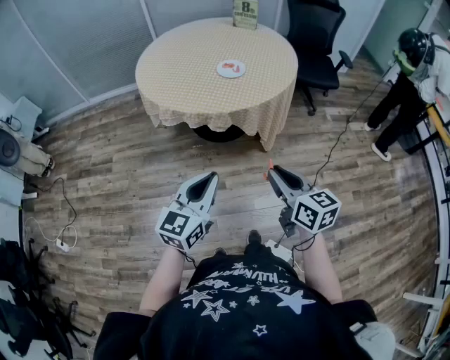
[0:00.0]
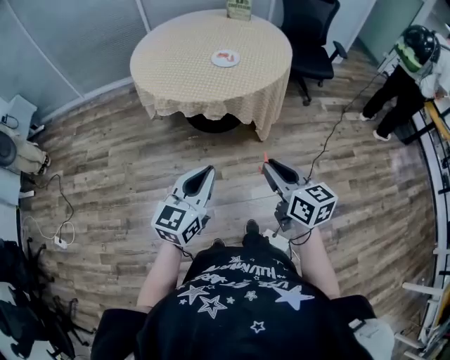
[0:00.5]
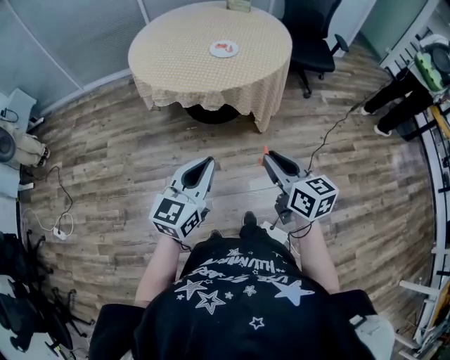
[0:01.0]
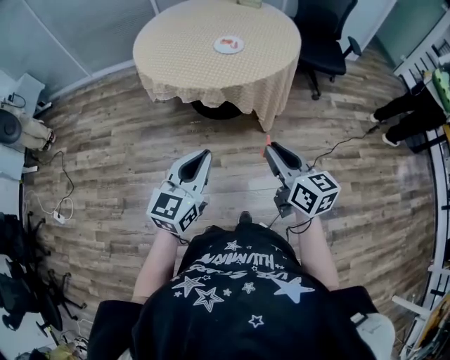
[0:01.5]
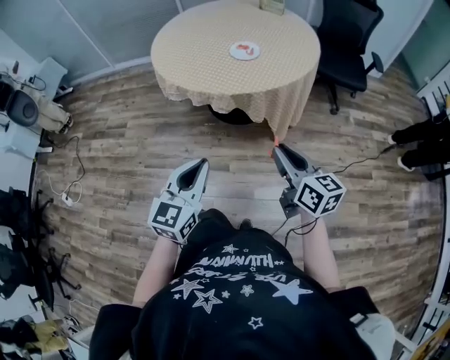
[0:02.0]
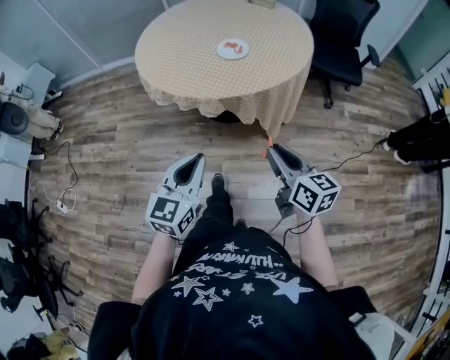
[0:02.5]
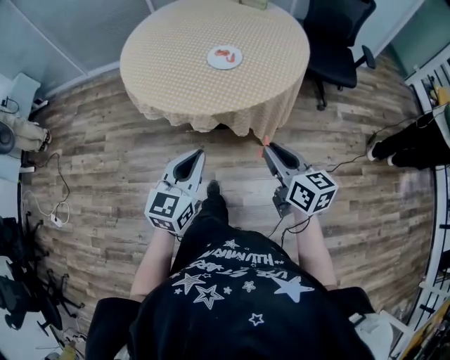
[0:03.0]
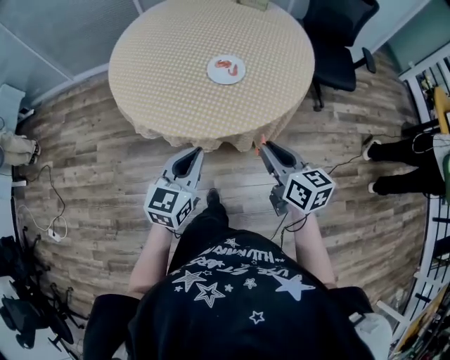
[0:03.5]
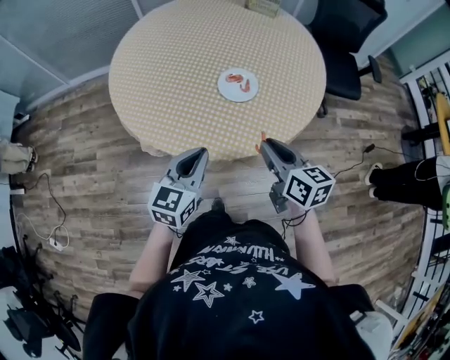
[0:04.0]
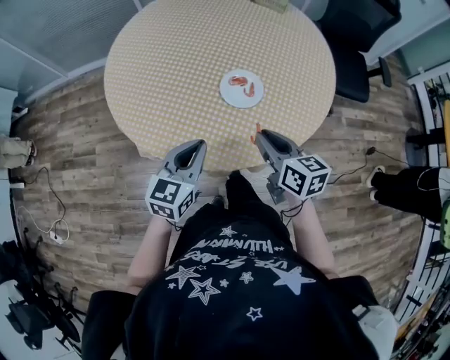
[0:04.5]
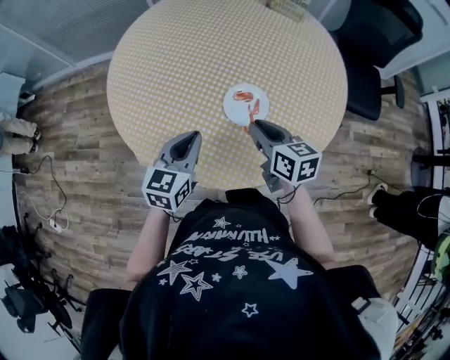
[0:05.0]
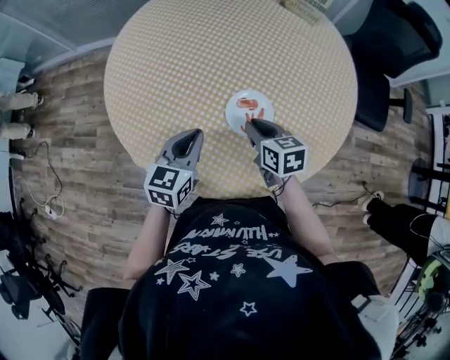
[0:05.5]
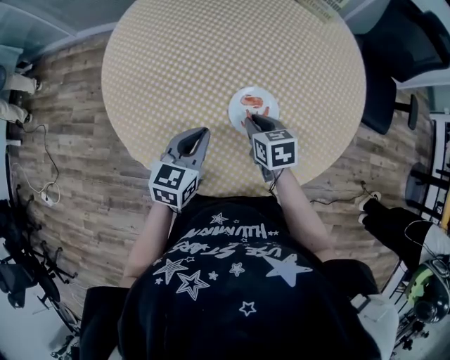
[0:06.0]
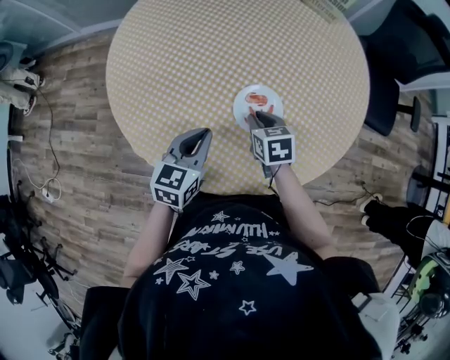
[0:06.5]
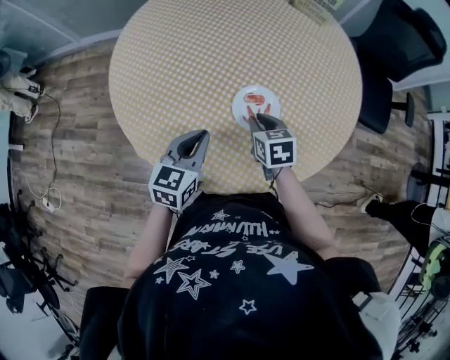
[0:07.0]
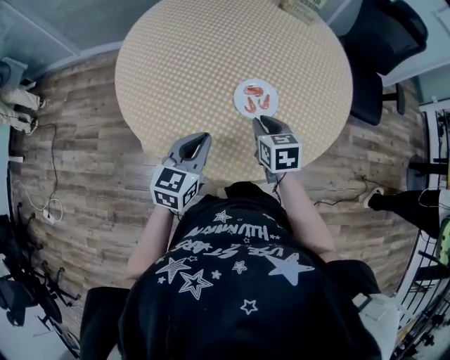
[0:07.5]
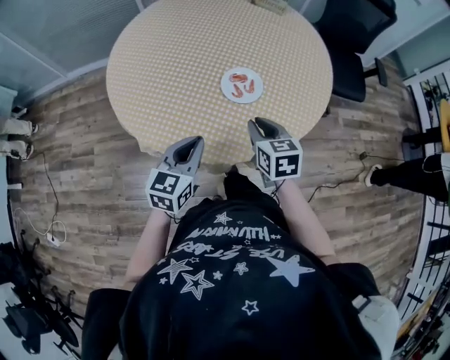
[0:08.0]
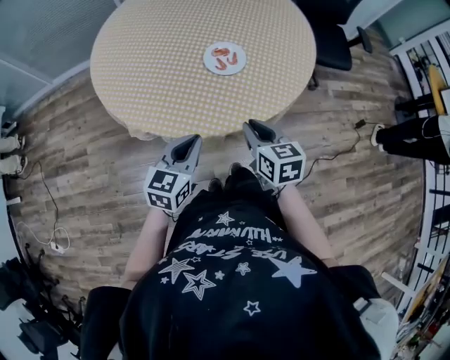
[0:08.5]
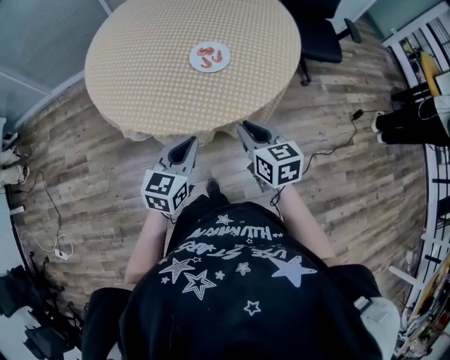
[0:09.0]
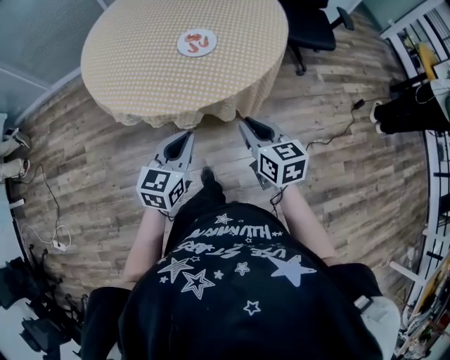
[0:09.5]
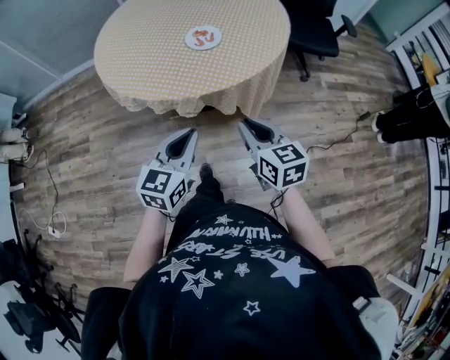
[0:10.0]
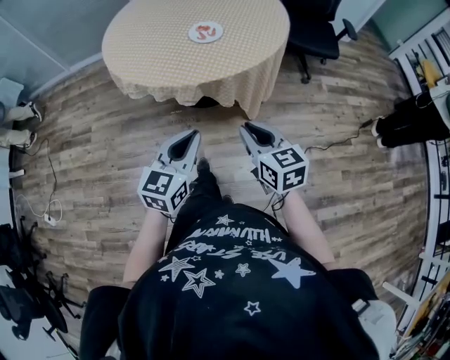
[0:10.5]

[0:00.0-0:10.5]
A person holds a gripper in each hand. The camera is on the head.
0:00.0 to 0:02.0: The right gripper travels to the right and forward by about 10 cm; the left gripper heads to the right, covering roughly 5 cm.
0:02.0 to 0:04.0: The two grippers go approximately 35 cm forward.
0:04.0 to 0:06.5: The left gripper shifts roughly 20 cm forward and downward. The right gripper moves forward and downward, approximately 30 cm, and changes its angle by some 30 degrees.
0:06.5 to 0:08.5: Both grippers move backward, roughly 25 cm. The right gripper changes its angle by some 20 degrees.
0:08.5 to 0:10.5: The two grippers go approximately 25 cm backward and to the right.

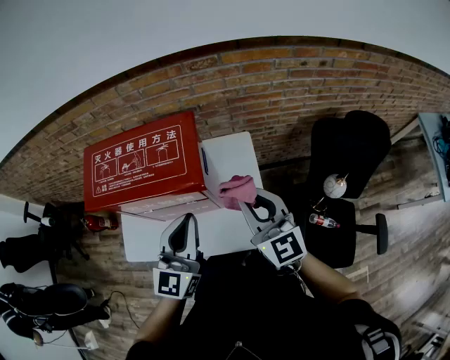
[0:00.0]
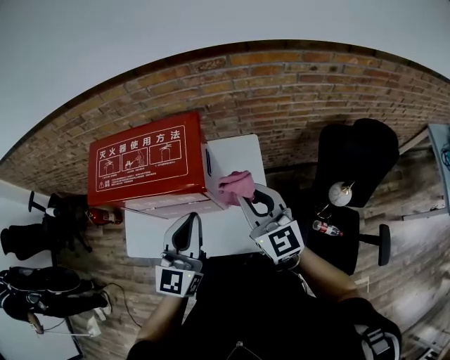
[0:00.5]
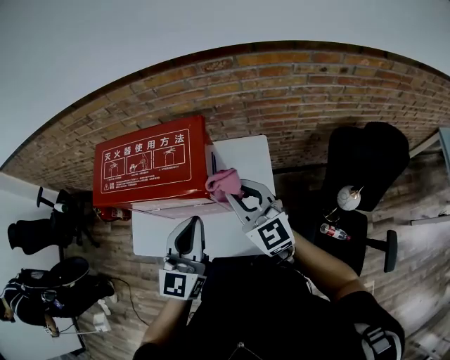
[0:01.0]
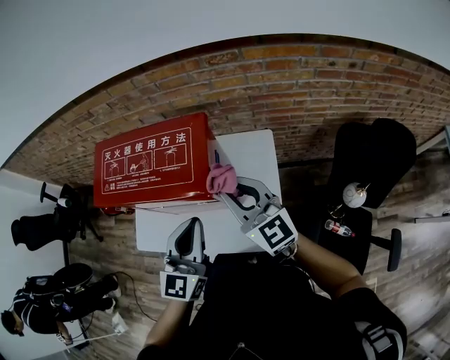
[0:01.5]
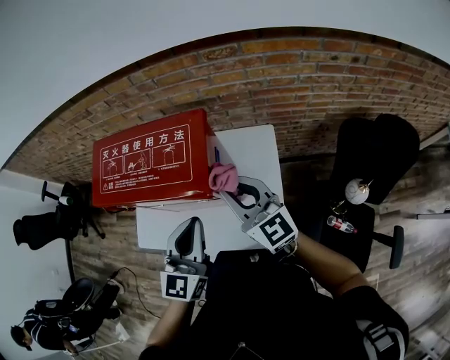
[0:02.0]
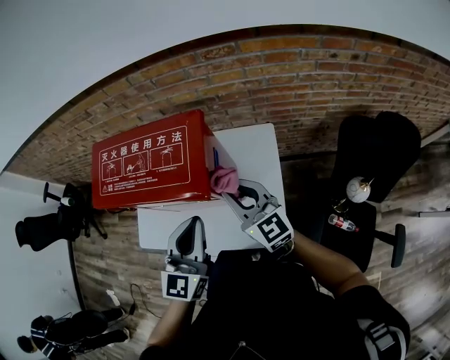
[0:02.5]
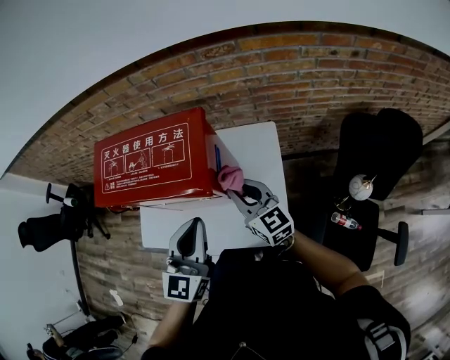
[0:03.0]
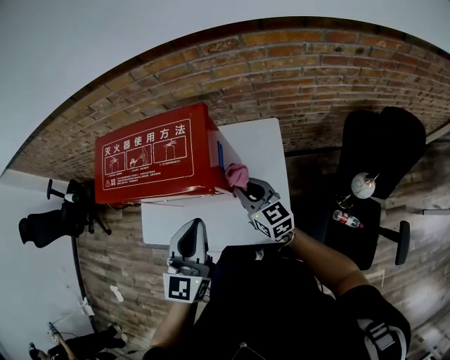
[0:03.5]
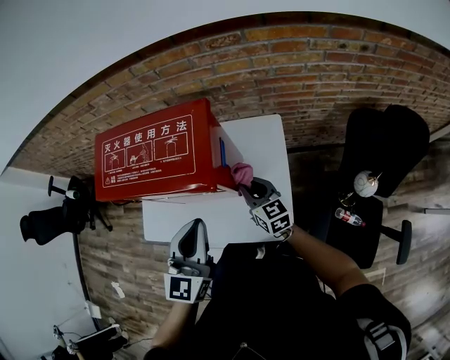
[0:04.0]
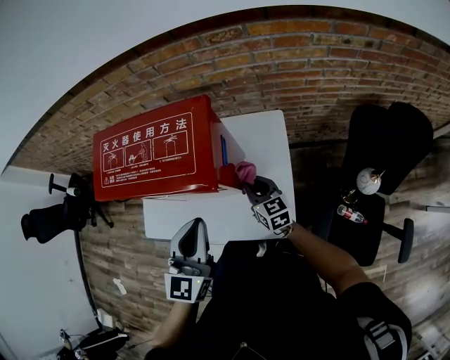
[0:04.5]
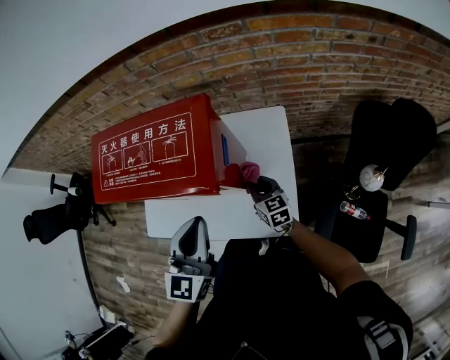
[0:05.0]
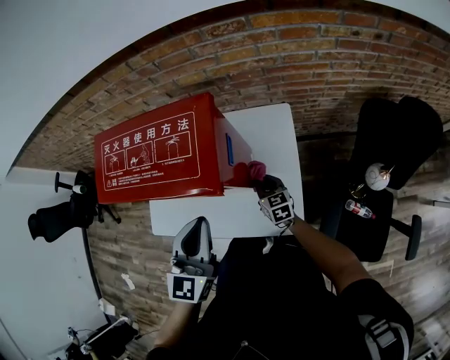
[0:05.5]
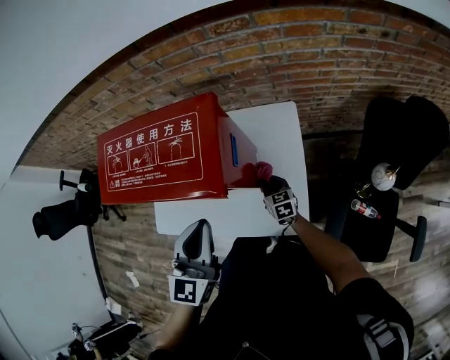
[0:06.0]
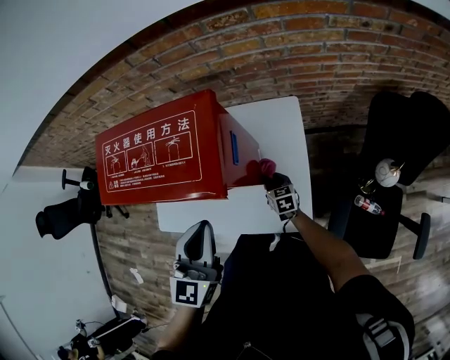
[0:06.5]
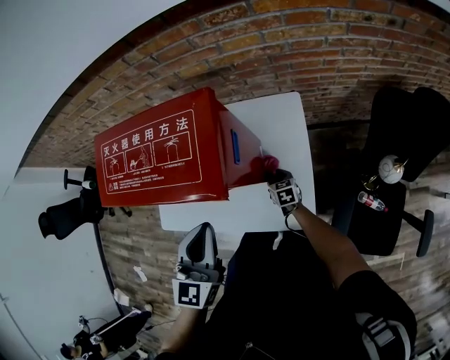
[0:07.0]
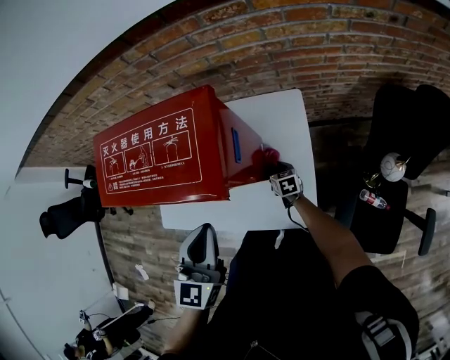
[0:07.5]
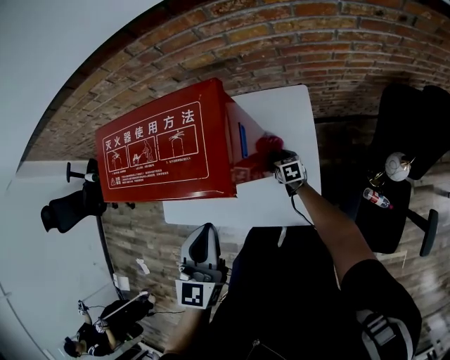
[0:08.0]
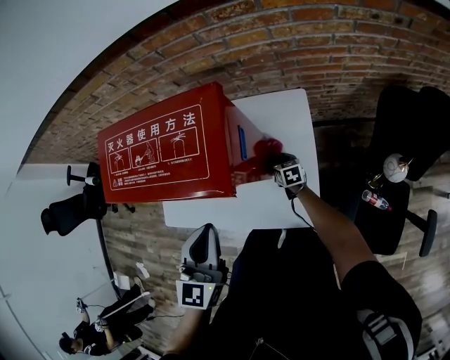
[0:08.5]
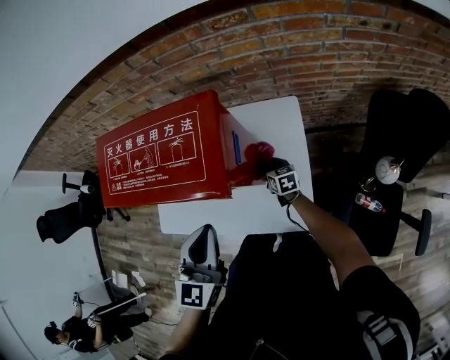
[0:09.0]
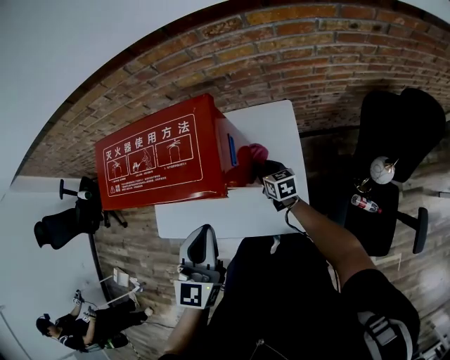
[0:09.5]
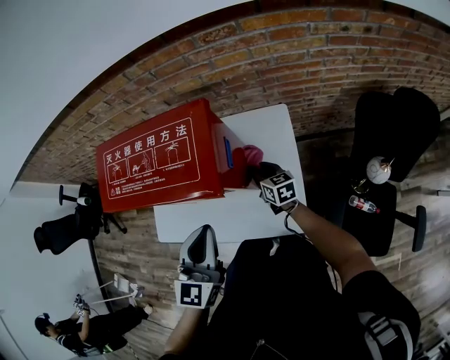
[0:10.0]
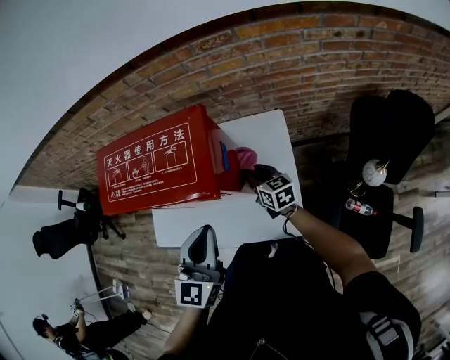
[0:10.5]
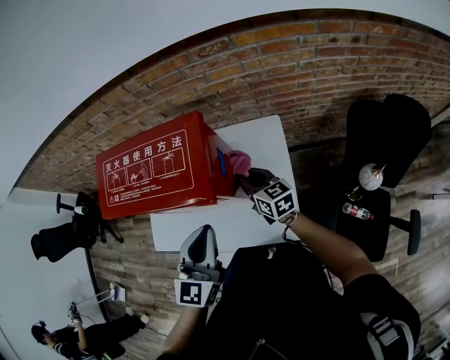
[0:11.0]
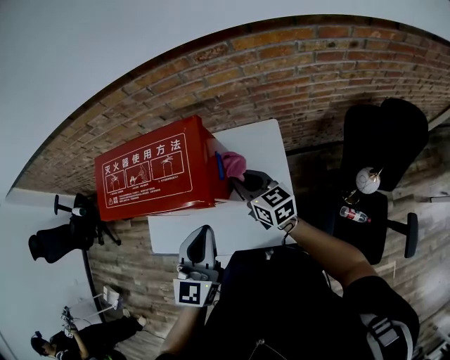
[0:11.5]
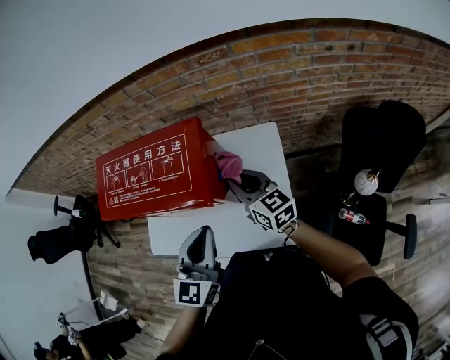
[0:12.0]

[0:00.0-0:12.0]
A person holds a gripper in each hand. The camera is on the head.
0:00.0 to 0:02.0: The right gripper is displaced forward and to the left by approximately 10 cm.
0:02.0 to 0:04.0: The right gripper is displaced downward by approximately 20 cm, and turns by some 20 degrees.
0:04.0 to 0:06.0: The right gripper moves downward, roughly 15 cm.
0:06.0 to 0:08.0: The right gripper moves downward and forward, some 10 cm.
0:08.0 to 0:10.0: The right gripper moves upward, about 15 cm.
0:10.0 to 0:12.0: The right gripper heads upward, covering roughly 20 cm, and swivels about 20 degrees.

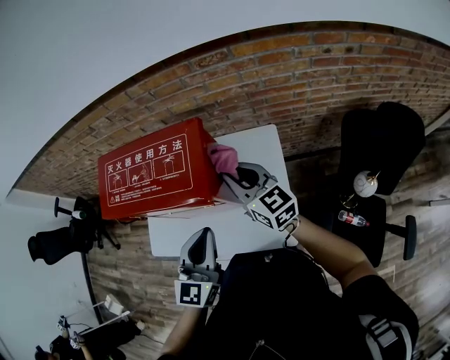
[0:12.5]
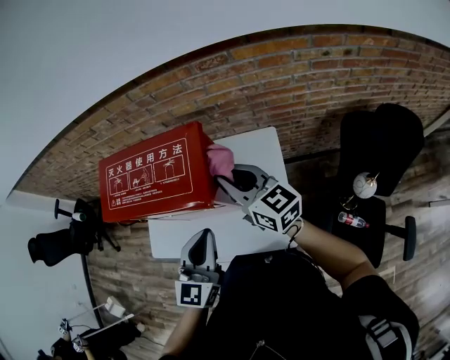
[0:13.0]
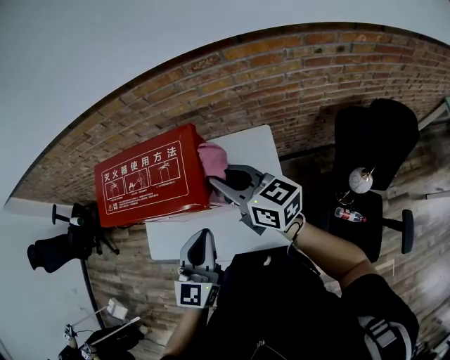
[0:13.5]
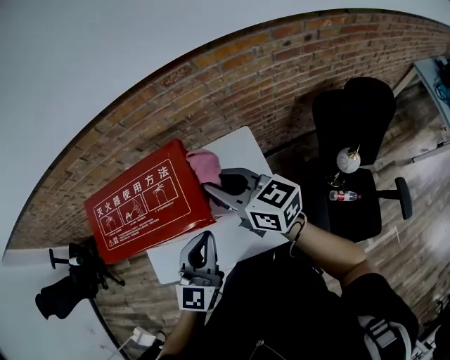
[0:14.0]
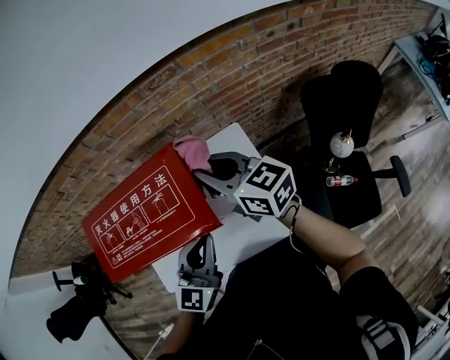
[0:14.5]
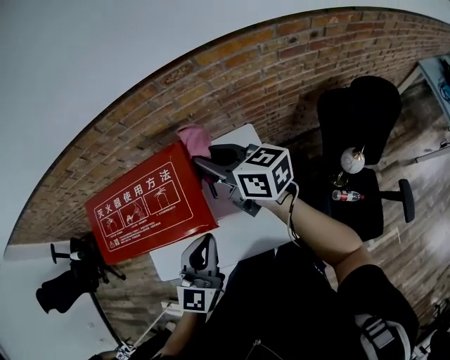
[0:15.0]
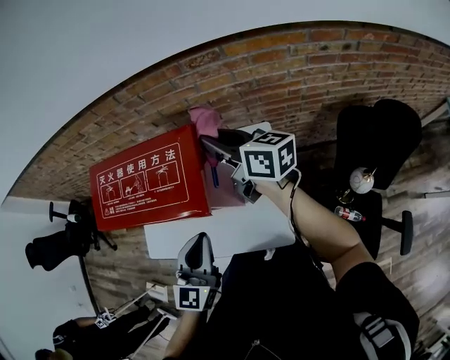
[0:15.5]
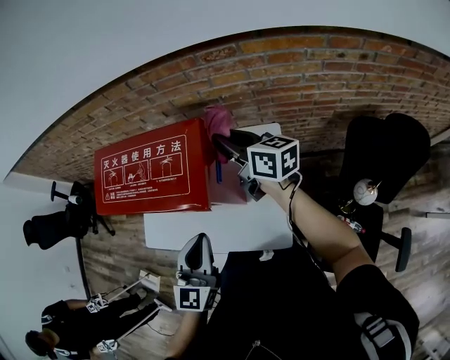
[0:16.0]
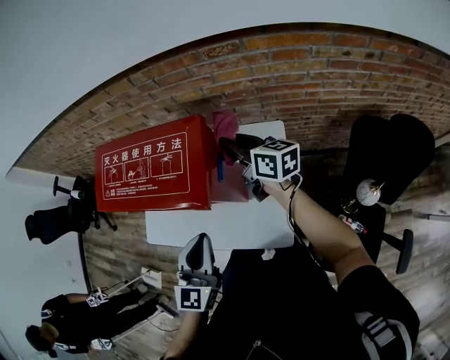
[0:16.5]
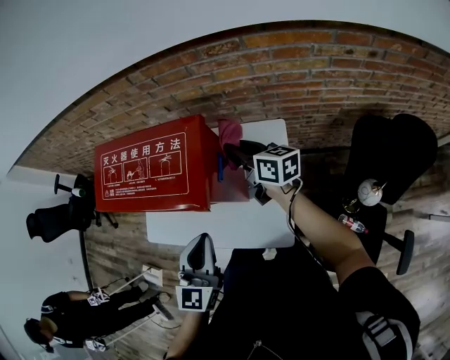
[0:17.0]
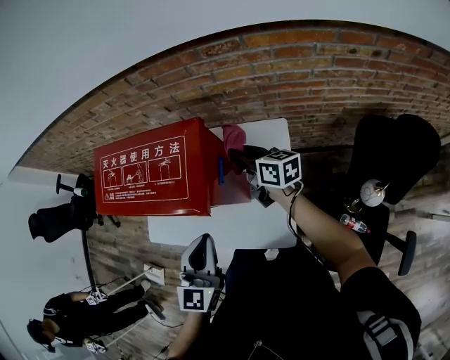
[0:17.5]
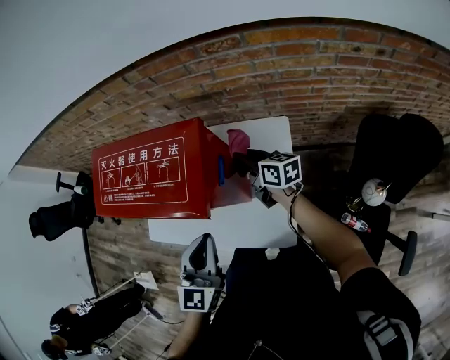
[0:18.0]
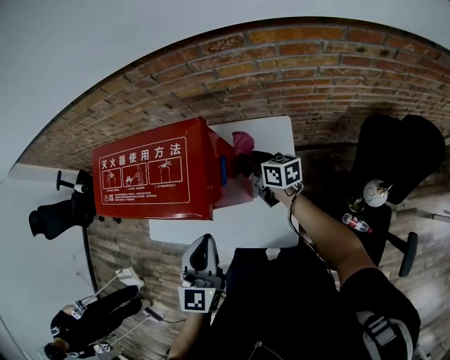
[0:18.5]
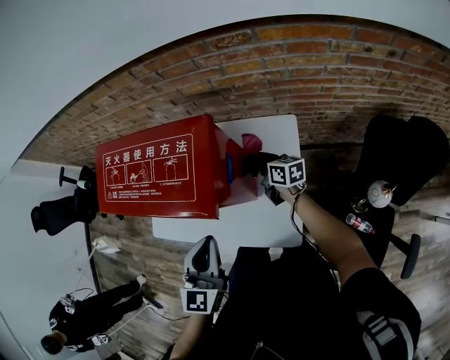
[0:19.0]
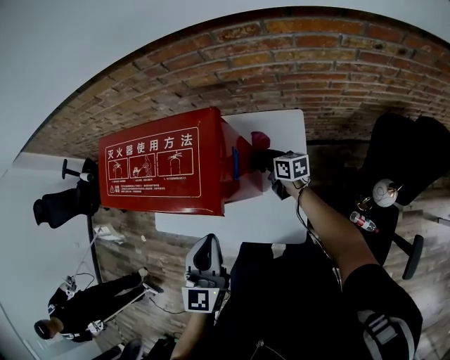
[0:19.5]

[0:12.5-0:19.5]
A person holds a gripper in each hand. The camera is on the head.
0:12.5 to 0:14.5: The right gripper is displaced upward by about 5 cm. Meanwhile the left gripper shifts some 5 cm forward, and swivels about 20 degrees.
0:14.5 to 0:16.0: The left gripper goes roughly 5 cm backward, and turns by roughly 30 degrees. The right gripper ends up approximately 5 cm from where it was.
0:16.0 to 0:17.5: The right gripper is displaced downward by some 10 cm.
0:17.5 to 0:19.5: The right gripper travels downward by some 20 cm.
